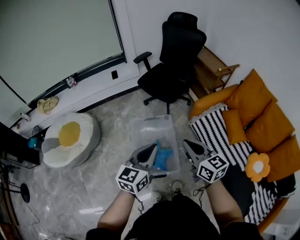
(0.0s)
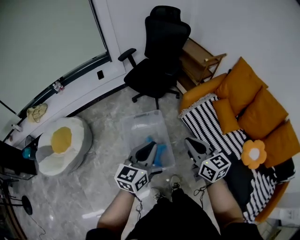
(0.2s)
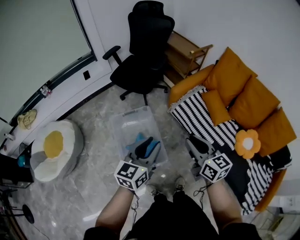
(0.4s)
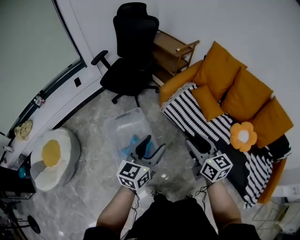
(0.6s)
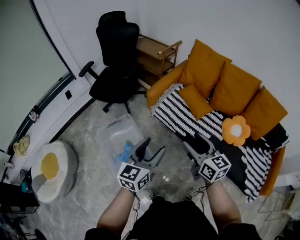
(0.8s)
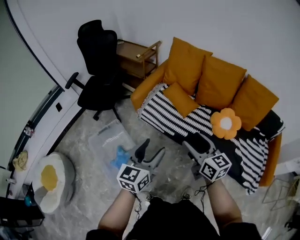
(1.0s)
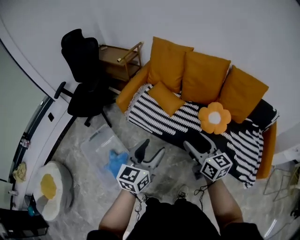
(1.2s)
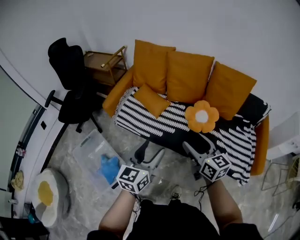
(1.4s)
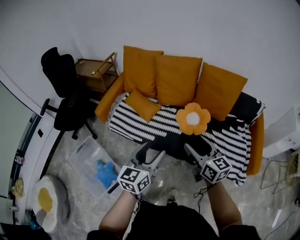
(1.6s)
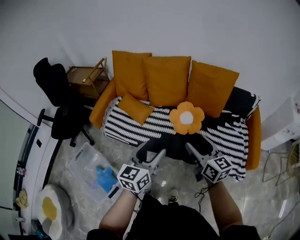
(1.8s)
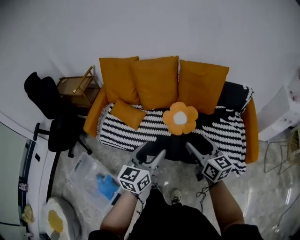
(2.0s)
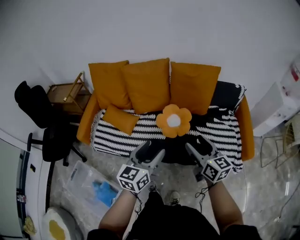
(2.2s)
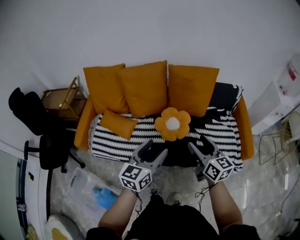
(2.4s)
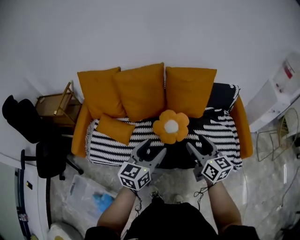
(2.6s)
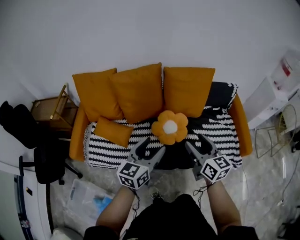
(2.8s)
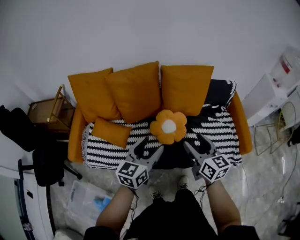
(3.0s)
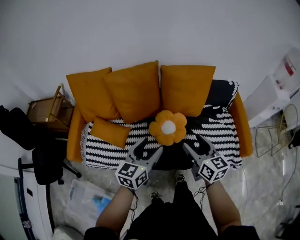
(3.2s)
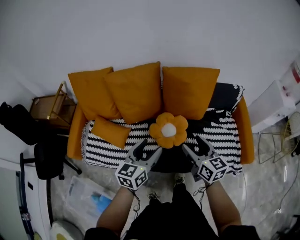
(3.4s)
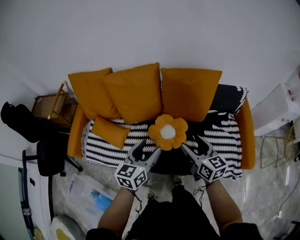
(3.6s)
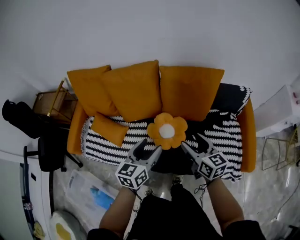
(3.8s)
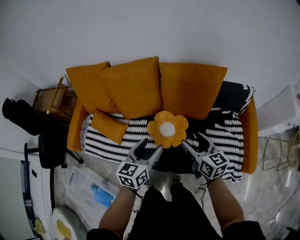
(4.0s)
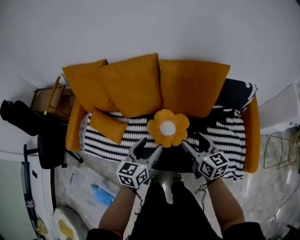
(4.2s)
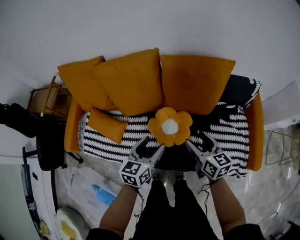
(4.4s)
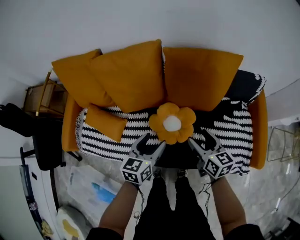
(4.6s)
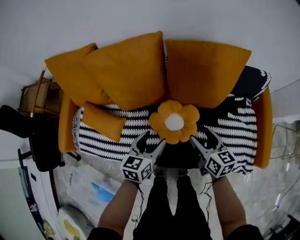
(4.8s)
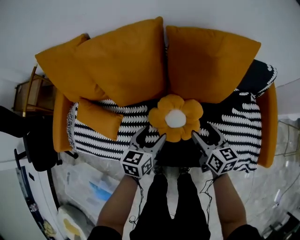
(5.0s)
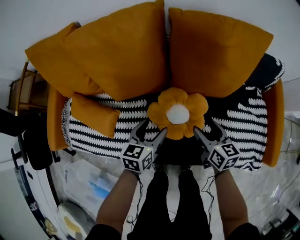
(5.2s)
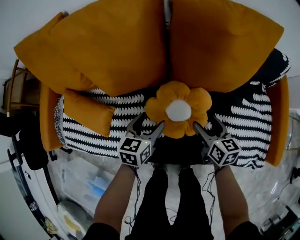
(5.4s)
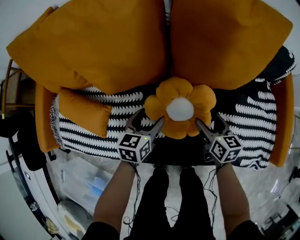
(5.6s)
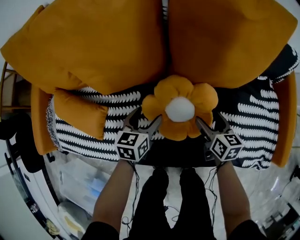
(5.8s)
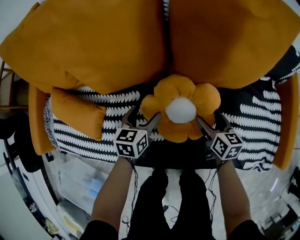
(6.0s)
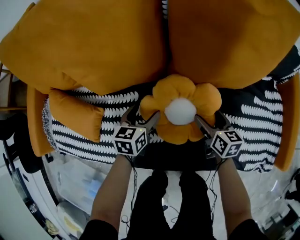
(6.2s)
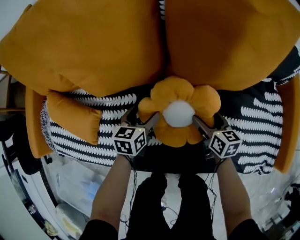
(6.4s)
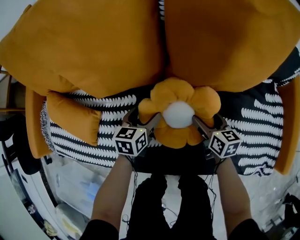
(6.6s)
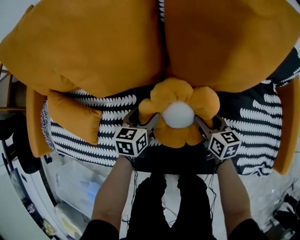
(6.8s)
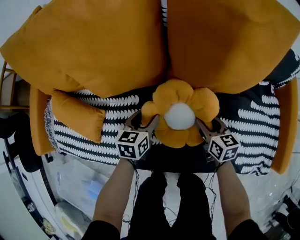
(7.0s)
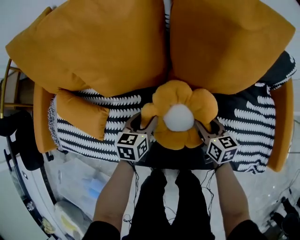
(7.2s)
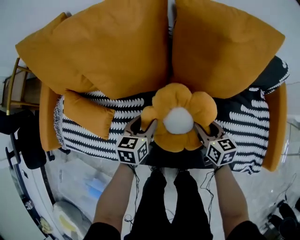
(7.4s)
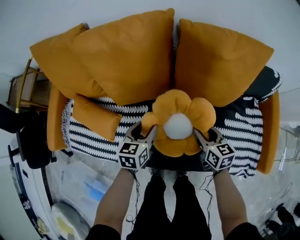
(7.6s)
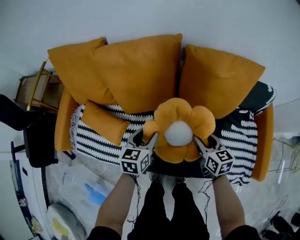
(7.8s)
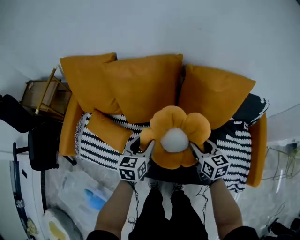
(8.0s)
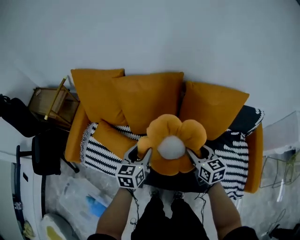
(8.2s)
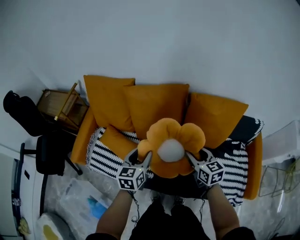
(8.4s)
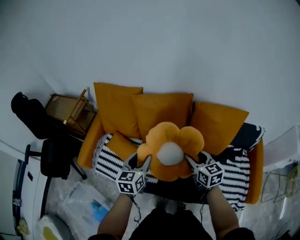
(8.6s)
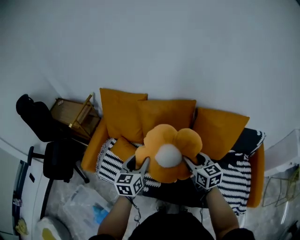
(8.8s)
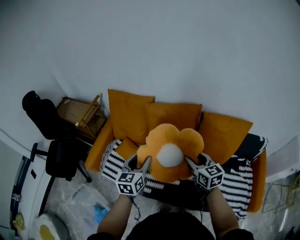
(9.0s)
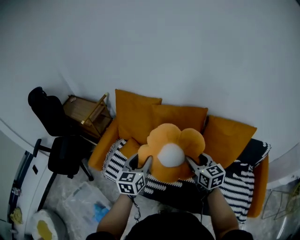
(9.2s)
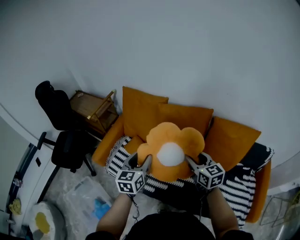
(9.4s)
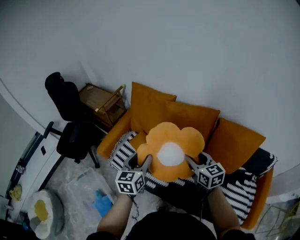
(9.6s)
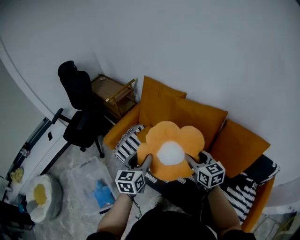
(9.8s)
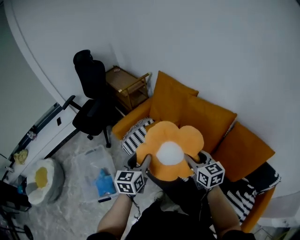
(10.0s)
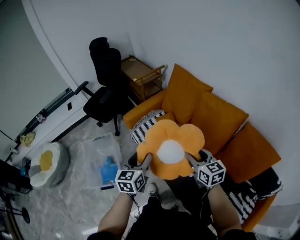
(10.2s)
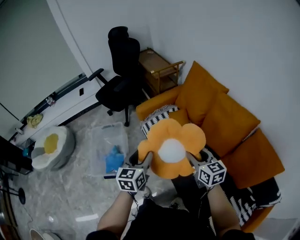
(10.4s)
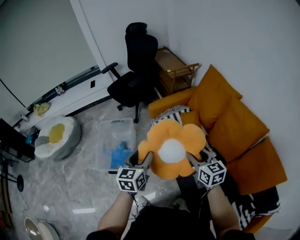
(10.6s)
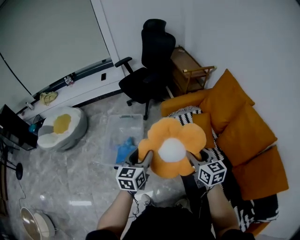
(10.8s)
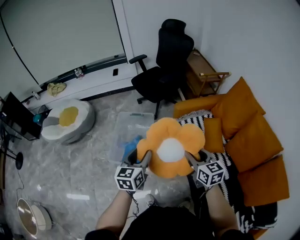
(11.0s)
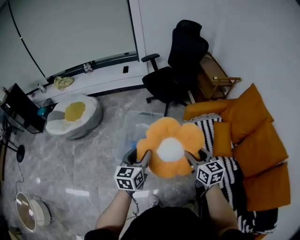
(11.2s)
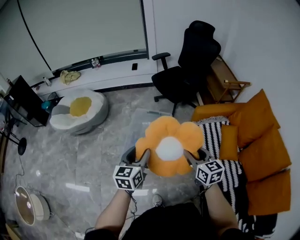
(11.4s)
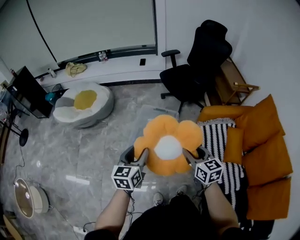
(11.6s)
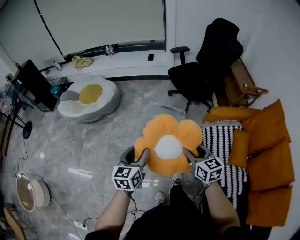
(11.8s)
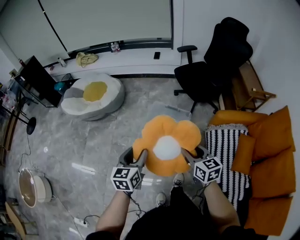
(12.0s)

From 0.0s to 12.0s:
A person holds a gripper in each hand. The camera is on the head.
From 0.0s to 1.6s: The pair of grippers is taken approximately 60 cm. The right gripper turns by about 50 degrees, and opens its fingers. The left gripper rotates about 40 degrees, and opens its fingers.
From 1.6s to 3.0s: The left gripper shifts by roughly 20 cm, and changes its angle by approximately 30 degrees, while the right gripper ends up approximately 15 cm from where it was, and changes its angle by roughly 30 degrees.
From 3.0s to 4.4s: The right gripper moves forward, downward and to the right, approximately 20 cm. The left gripper heads downward, forward and to the right, covering some 20 cm.
From 4.4s to 6.0s: The grippers both shift downward by roughly 35 cm.
From 6.0s to 7.6s: The two grippers go approximately 15 cm upward. The left gripper closes its fingers, while the right gripper closes up.
From 7.6s to 9.0s: Both grippers travel together upward and to the left, roughly 35 cm. The left gripper rotates some 30 degrees. Meanwhile the right gripper swivels roughly 20 degrees.
From 9.0s to 10.4s: The left gripper moves roughly 25 cm, and changes its angle by roughly 40 degrees. Meanwhile the right gripper moves some 20 cm, and swivels roughly 40 degrees.
From 10.4s to 12.0s: The pair of grippers is taken approximately 50 cm. The right gripper rotates approximately 30 degrees; the left gripper rotates some 40 degrees.

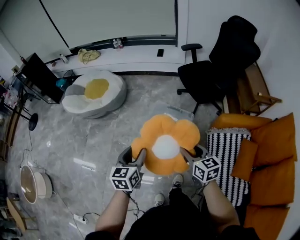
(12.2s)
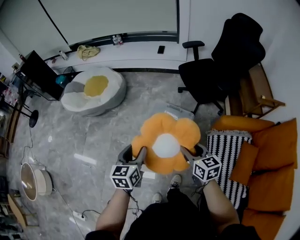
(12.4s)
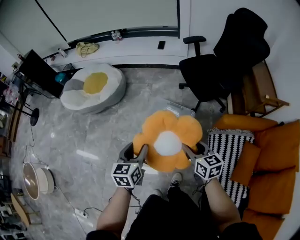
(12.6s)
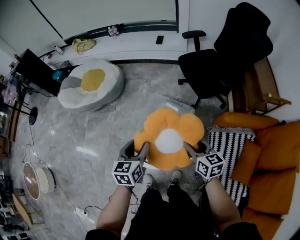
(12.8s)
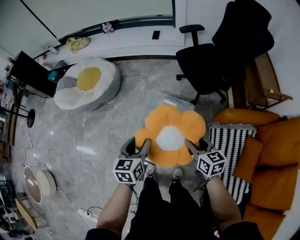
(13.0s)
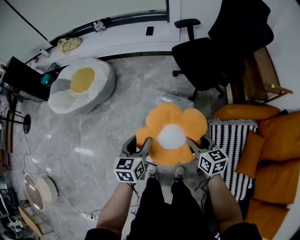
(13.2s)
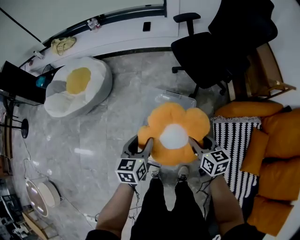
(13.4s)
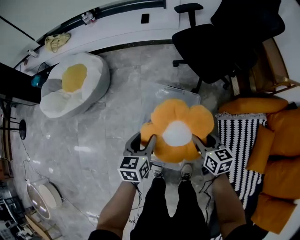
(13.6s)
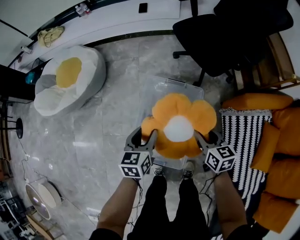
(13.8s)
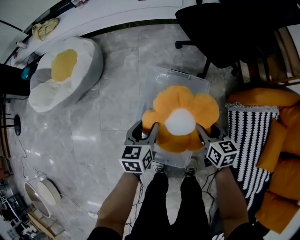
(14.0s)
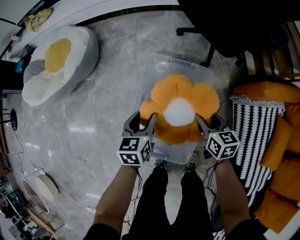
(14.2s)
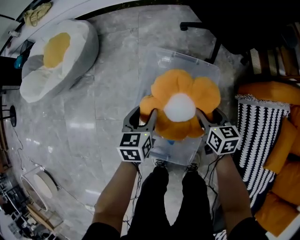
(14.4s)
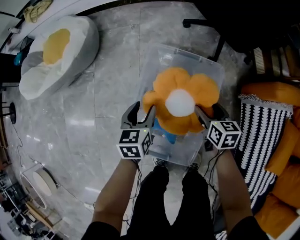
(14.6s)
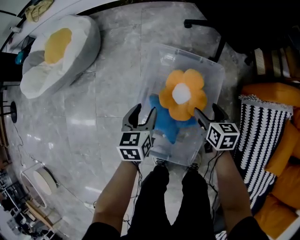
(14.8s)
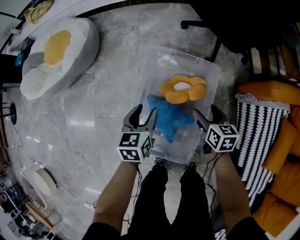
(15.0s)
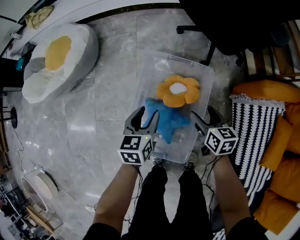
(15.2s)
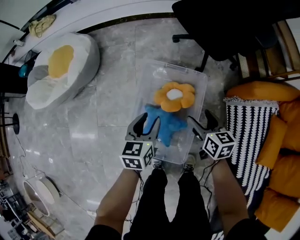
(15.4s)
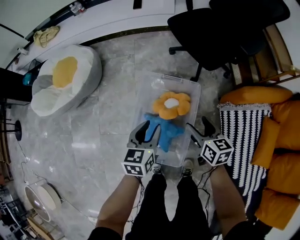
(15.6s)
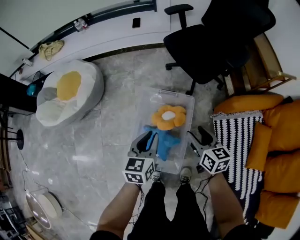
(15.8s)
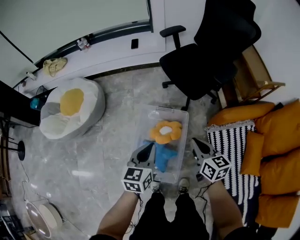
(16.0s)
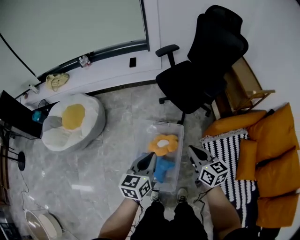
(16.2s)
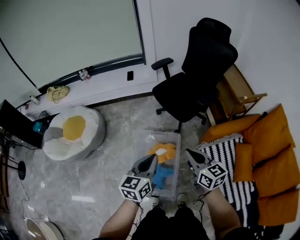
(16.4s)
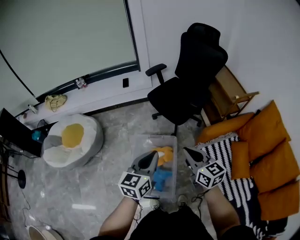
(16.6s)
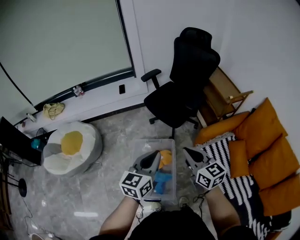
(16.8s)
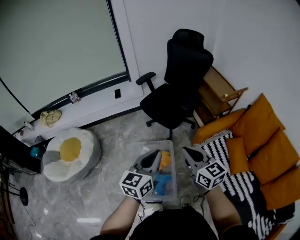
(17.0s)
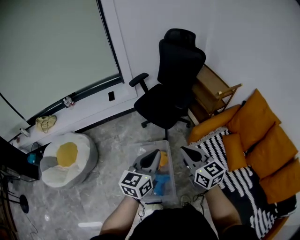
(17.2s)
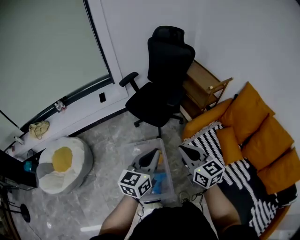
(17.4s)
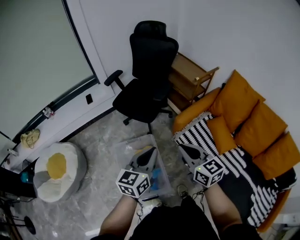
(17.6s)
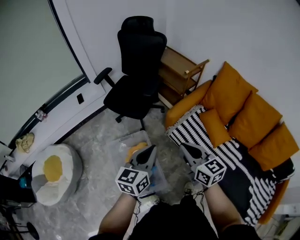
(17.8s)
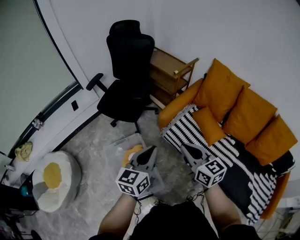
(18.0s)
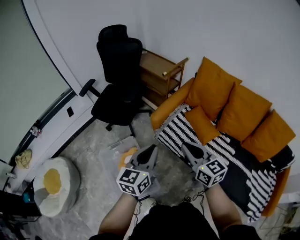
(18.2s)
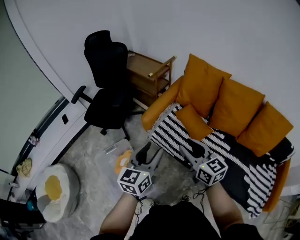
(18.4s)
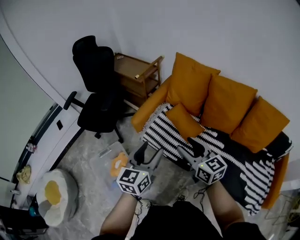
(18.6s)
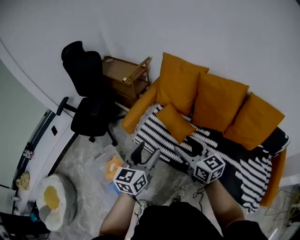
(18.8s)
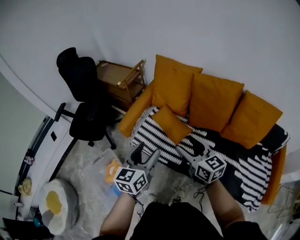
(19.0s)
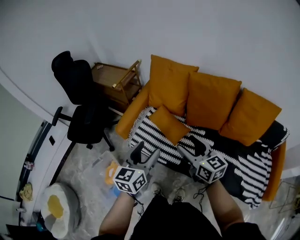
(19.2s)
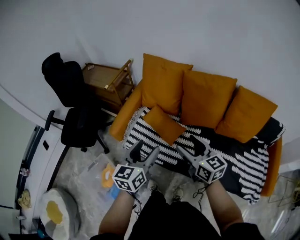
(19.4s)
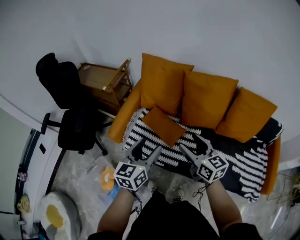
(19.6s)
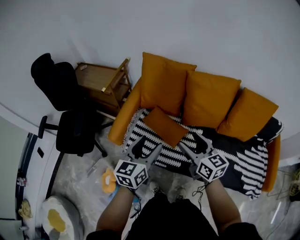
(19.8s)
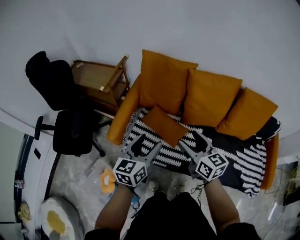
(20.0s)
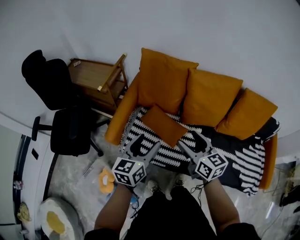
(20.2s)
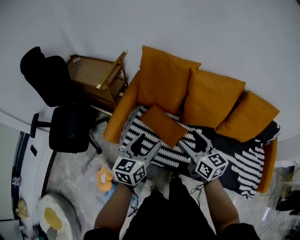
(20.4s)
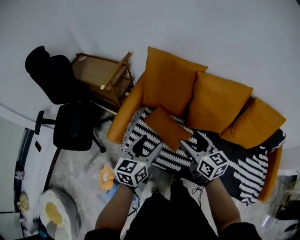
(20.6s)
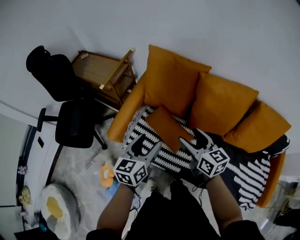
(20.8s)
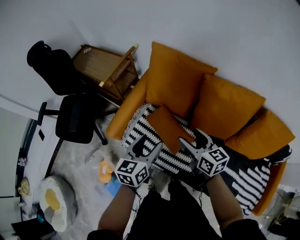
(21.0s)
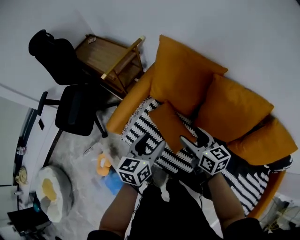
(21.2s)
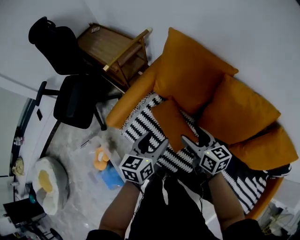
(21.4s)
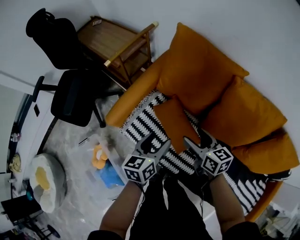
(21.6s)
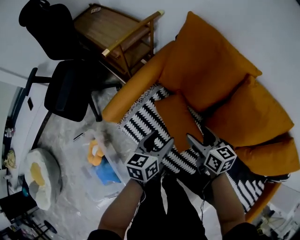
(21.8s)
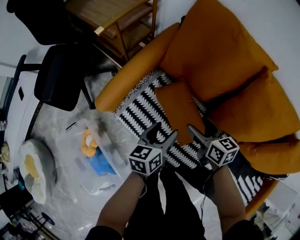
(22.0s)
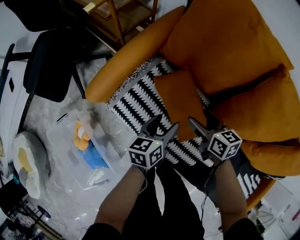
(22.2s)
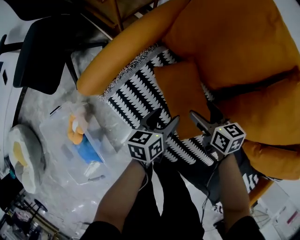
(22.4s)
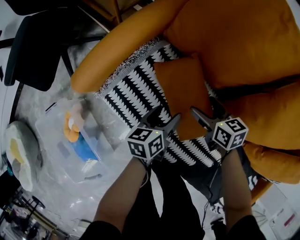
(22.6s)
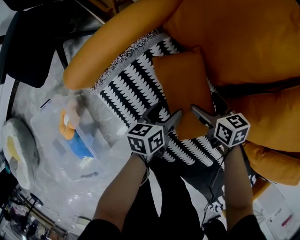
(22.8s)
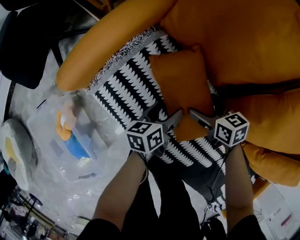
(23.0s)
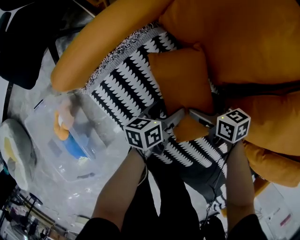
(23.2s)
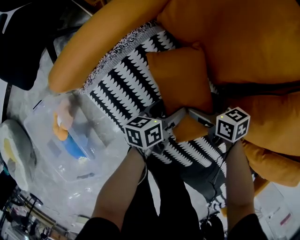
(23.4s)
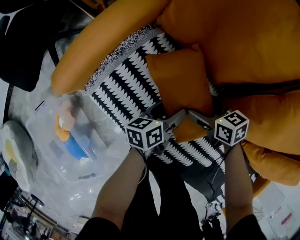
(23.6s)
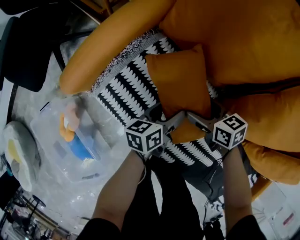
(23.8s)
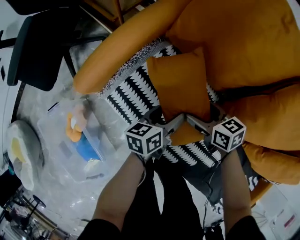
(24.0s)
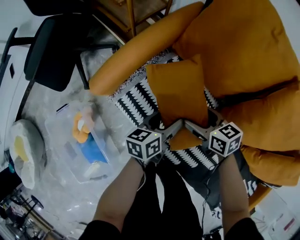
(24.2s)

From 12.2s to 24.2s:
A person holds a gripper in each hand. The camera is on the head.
From 12.2s to 13.8s: Both grippers travel together downward and forward, some 30 cm.
From 13.8s to 15.2s: Both grippers travel together downward, about 15 cm. The right gripper opens.
From 15.2s to 16.6s: The grippers both shift upward by approximately 40 cm. The right gripper changes its angle by about 30 degrees, and closes up, while the left gripper changes its angle by approximately 30 degrees, and closes.
From 16.6s to 18.2s: The right gripper moves about 25 cm, and swivels some 30 degrees. Meanwhile the left gripper changes place by some 25 cm, and turns by some 30 degrees.
From 18.2s to 19.8s: Both grippers travel together to the right and forward, approximately 30 cm. The left gripper turns by some 20 degrees, and opens its fingers. The right gripper rotates approximately 30 degrees, and opens its fingers.
From 19.8s to 21.2s: The two grippers go about 20 cm forward and downward.
From 21.2s to 22.6s: The two grippers go roughly 35 cm downward. The left gripper swivels some 30 degrees; the right gripper swivels roughly 30 degrees.
From 22.6s to 24.2s: The left gripper moves upward, about 5 cm; the right gripper travels to the left and upward by approximately 10 cm.
